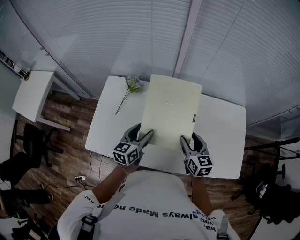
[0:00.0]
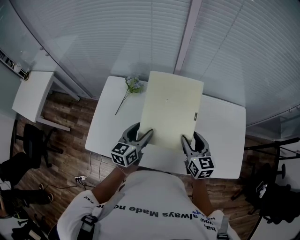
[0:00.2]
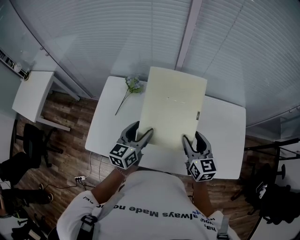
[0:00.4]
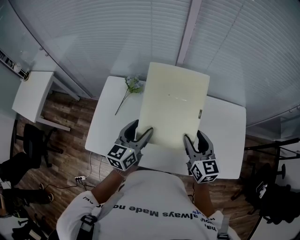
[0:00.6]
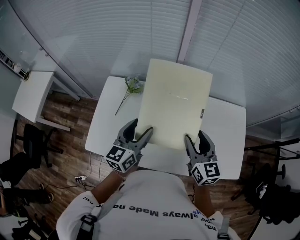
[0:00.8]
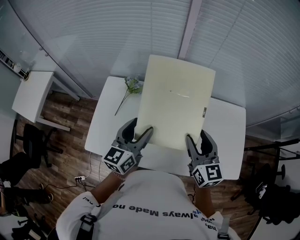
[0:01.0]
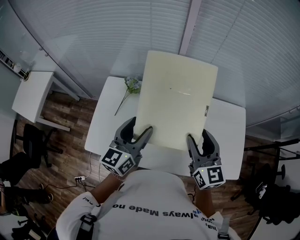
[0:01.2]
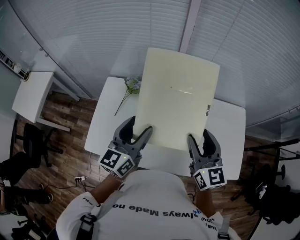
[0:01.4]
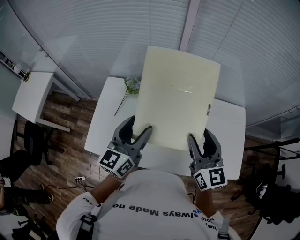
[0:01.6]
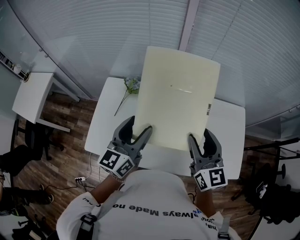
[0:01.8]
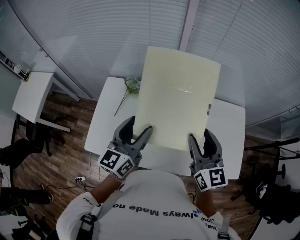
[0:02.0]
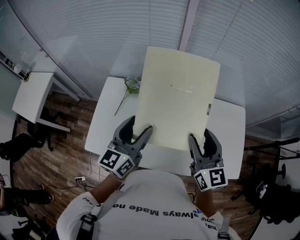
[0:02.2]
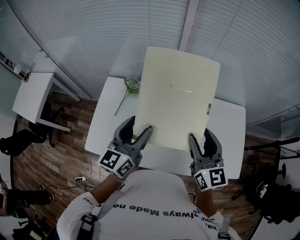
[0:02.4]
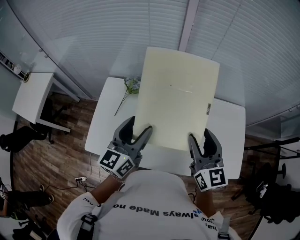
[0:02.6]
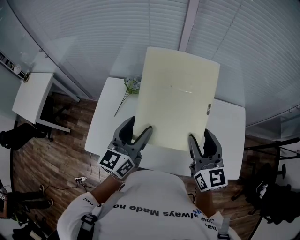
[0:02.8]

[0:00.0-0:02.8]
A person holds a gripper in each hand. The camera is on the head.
0:00.0 to 0:01.4: The two grippers go roughly 15 cm upward.
0:01.4 to 0:02.8: Both grippers stay put.

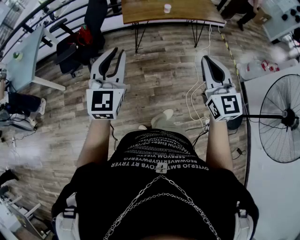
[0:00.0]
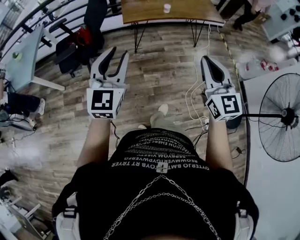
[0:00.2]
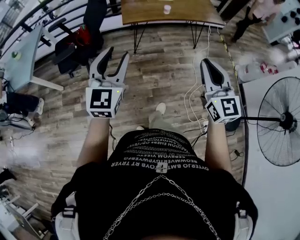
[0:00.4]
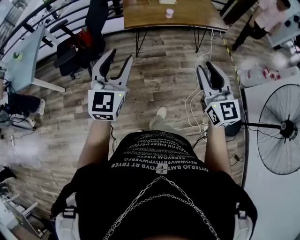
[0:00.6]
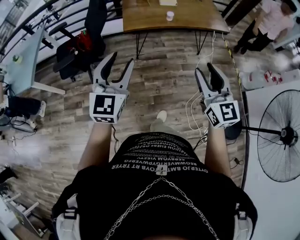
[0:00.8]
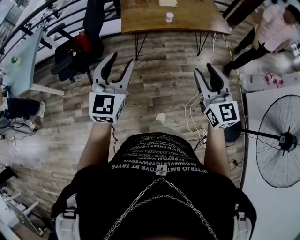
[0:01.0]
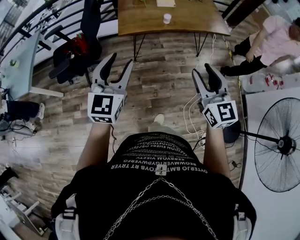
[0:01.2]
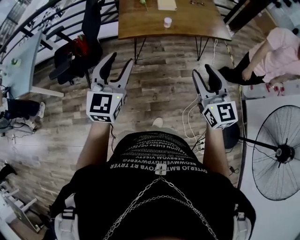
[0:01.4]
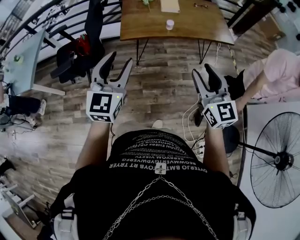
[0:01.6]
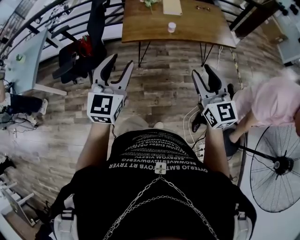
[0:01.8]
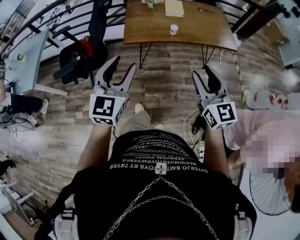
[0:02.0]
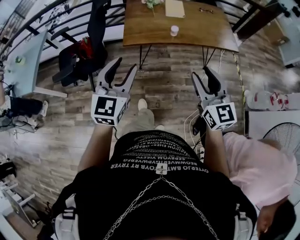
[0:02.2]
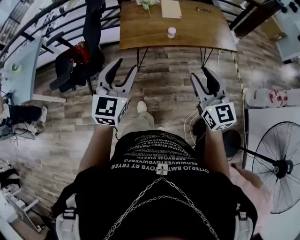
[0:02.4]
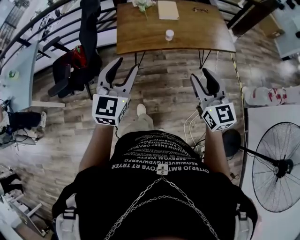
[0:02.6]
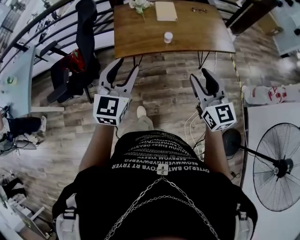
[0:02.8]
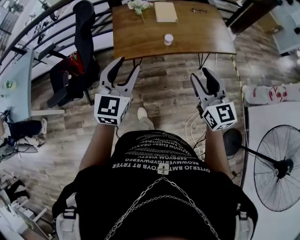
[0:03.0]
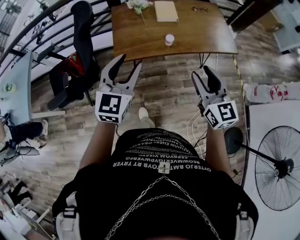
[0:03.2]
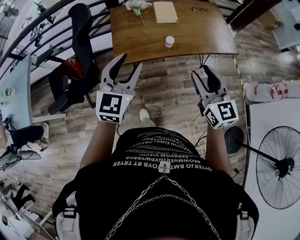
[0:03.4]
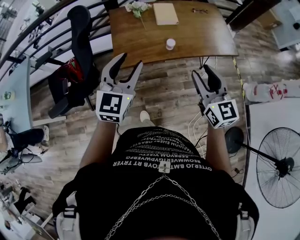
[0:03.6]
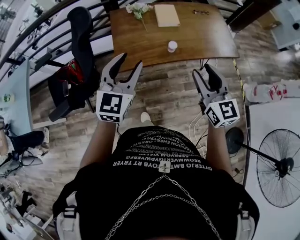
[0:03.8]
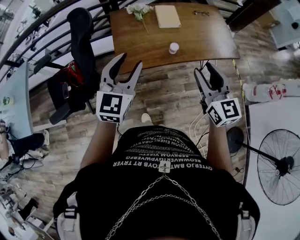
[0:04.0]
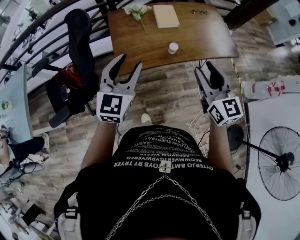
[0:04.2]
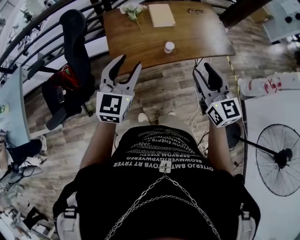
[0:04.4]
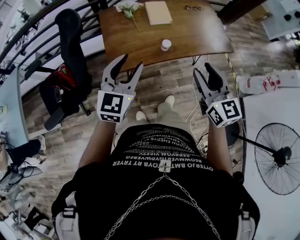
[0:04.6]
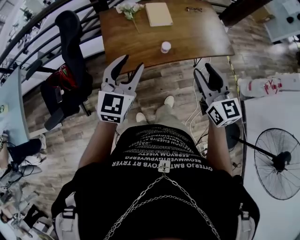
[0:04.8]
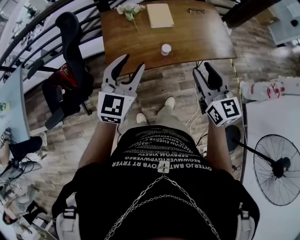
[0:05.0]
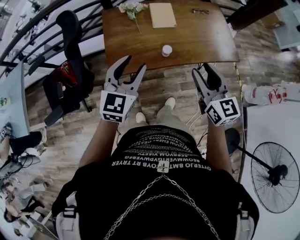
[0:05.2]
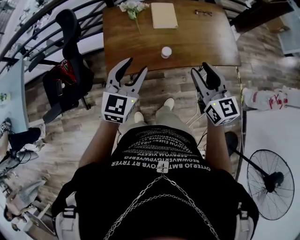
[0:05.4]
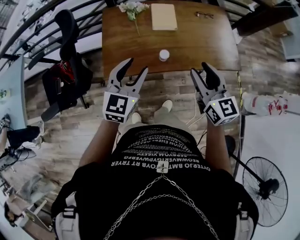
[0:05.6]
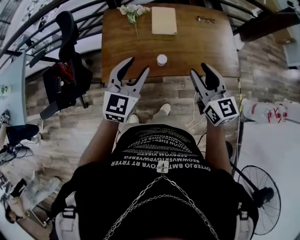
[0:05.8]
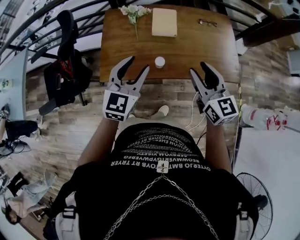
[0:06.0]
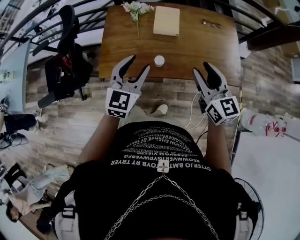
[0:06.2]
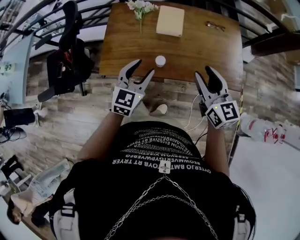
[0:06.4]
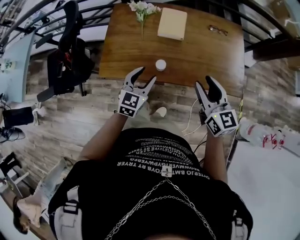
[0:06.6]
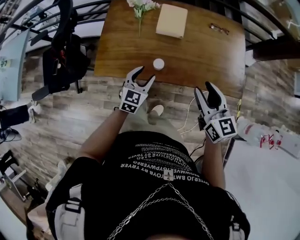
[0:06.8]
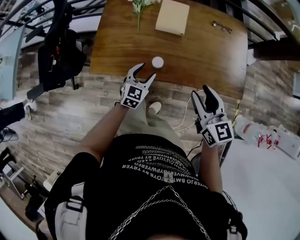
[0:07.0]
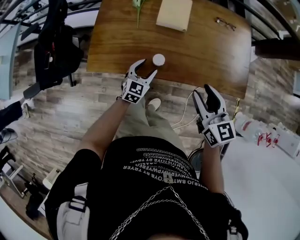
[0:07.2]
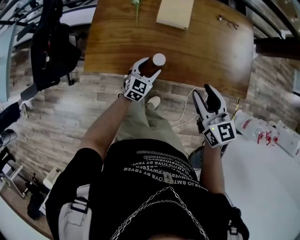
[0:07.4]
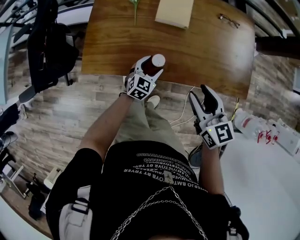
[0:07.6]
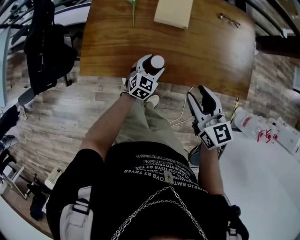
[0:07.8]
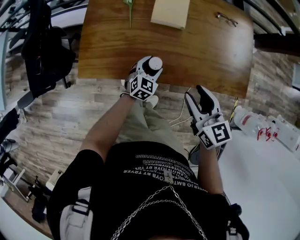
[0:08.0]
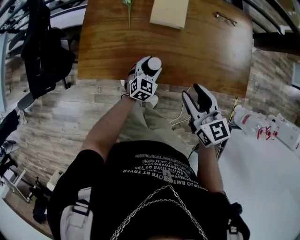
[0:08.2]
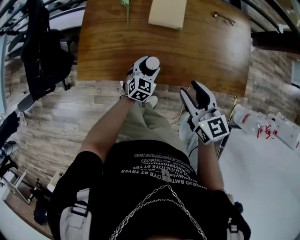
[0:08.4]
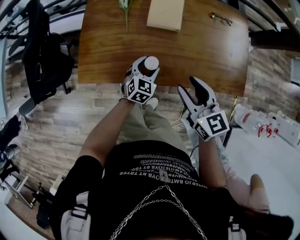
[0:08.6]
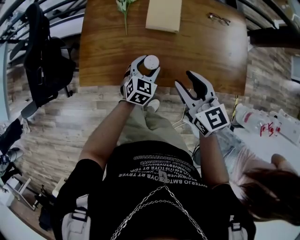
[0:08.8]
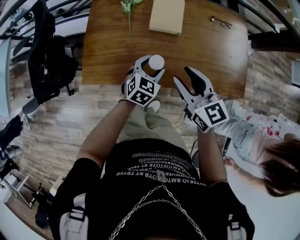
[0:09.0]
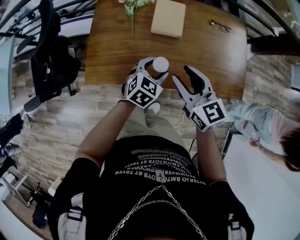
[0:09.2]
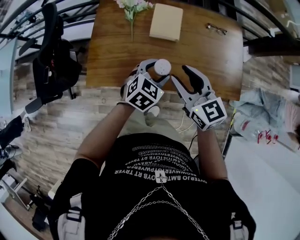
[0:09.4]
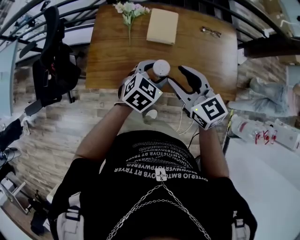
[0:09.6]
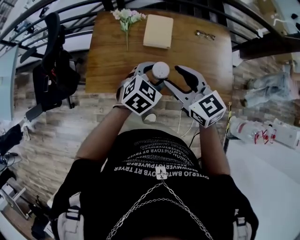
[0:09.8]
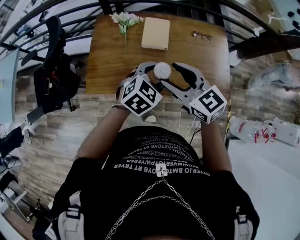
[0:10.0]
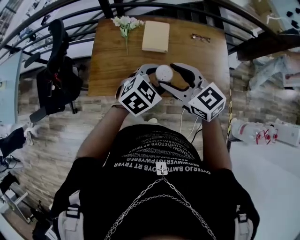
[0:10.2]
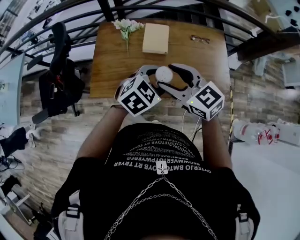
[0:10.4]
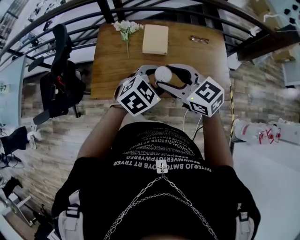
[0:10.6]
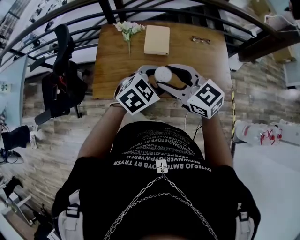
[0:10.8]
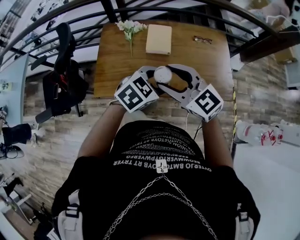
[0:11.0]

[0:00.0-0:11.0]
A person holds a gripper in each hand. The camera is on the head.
0:00.0 to 0:01.6: The grippers both shift forward and to the right by roughly 20 cm. The left gripper opens its fingers; the right gripper opens its fingers.
0:01.6 to 0:03.2: Both grippers travel together forward, about 20 cm.
0:03.2 to 0:04.8: Both grippers move forward, roughly 10 cm.
0:04.8 to 0:06.2: The left gripper shifts approximately 20 cm to the right, forward and downward; the right gripper goes about 20 cm forward and to the right.
0:06.2 to 0:07.8: The right gripper heads downward, covering approximately 15 cm. The left gripper heads downward, covering about 35 cm.
0:07.8 to 0:09.4: The right gripper travels upward, forward and to the left by approximately 10 cm. Meanwhile the left gripper heads upward, covering some 20 cm.
0:09.4 to 0:11.0: The right gripper moves upward, some 10 cm, and swivels roughly 20 degrees; the left gripper travels upward and backward by roughly 15 cm.

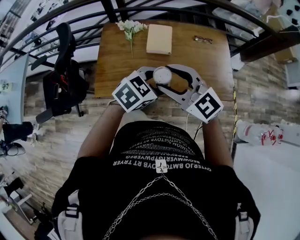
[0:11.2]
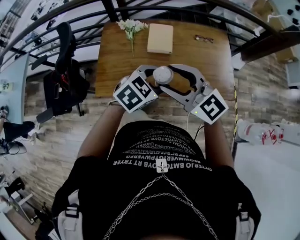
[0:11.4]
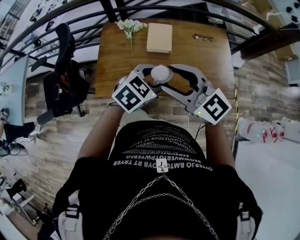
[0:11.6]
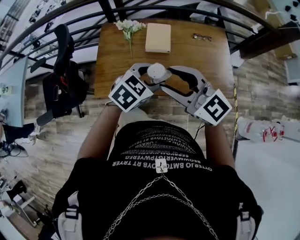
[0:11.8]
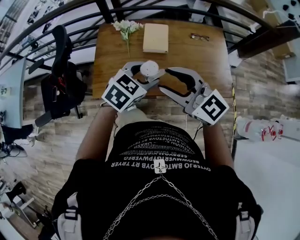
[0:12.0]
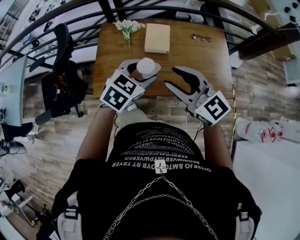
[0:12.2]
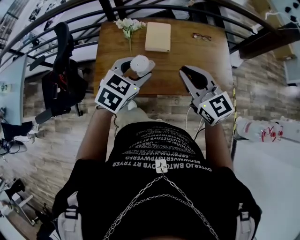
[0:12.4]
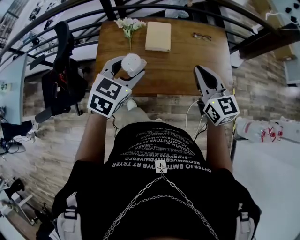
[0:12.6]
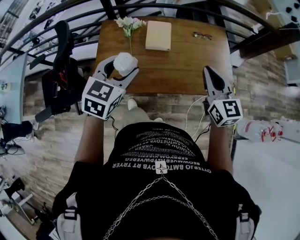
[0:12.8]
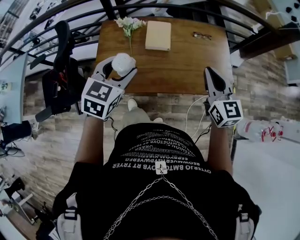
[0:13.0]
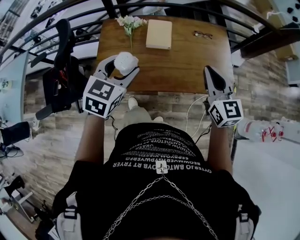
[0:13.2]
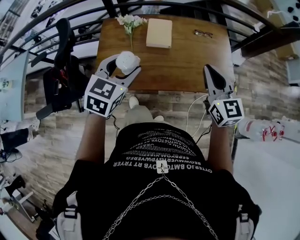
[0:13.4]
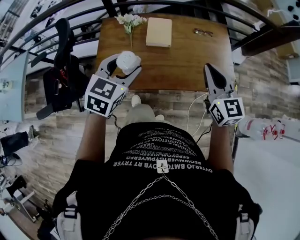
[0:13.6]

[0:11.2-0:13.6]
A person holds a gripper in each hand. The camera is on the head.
0:11.2 to 0:12.4: The right gripper travels to the right by roughly 5 cm, rotates about 20 degrees, and closes; the left gripper moves to the left, about 5 cm.
0:12.4 to 0:13.6: The right gripper shifts approximately 10 cm to the right.

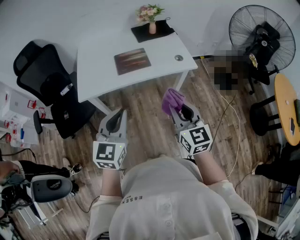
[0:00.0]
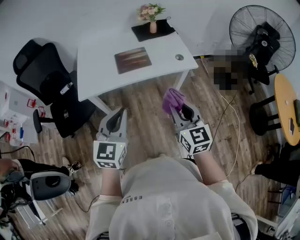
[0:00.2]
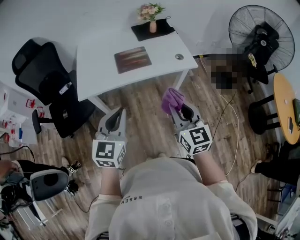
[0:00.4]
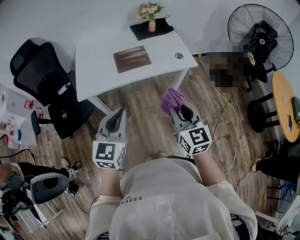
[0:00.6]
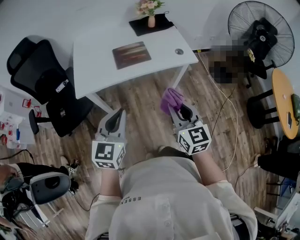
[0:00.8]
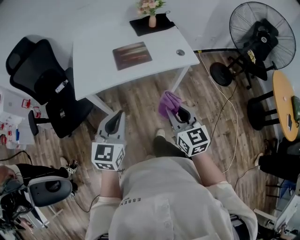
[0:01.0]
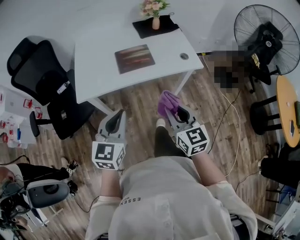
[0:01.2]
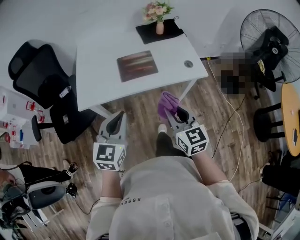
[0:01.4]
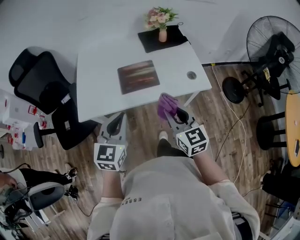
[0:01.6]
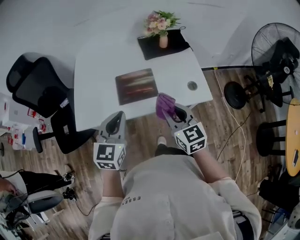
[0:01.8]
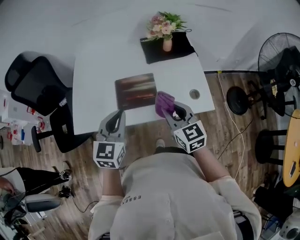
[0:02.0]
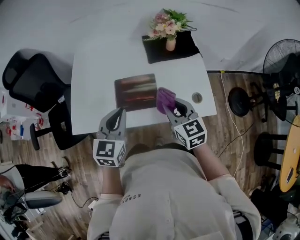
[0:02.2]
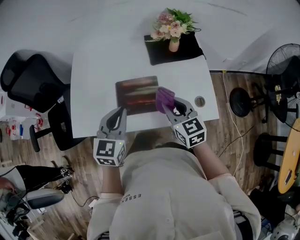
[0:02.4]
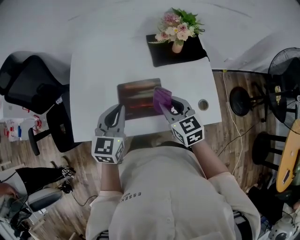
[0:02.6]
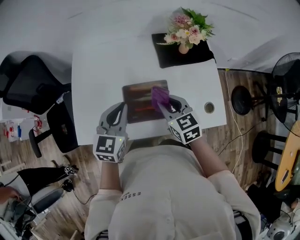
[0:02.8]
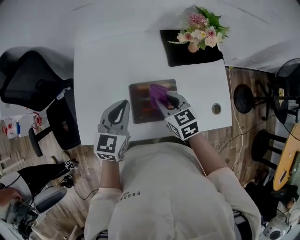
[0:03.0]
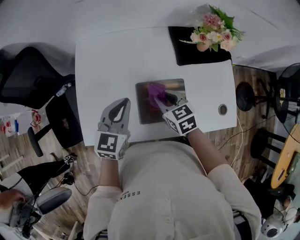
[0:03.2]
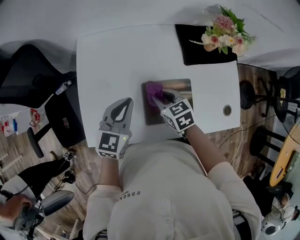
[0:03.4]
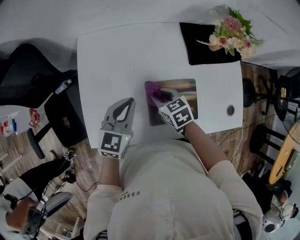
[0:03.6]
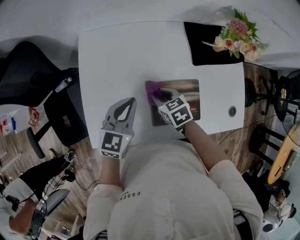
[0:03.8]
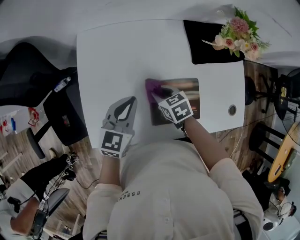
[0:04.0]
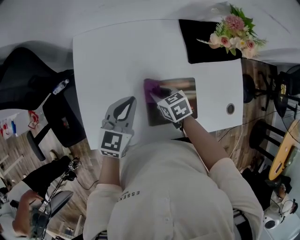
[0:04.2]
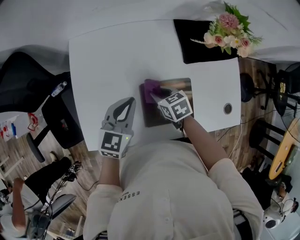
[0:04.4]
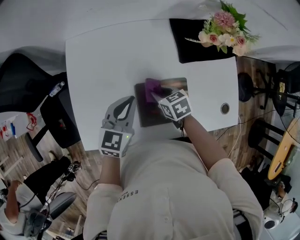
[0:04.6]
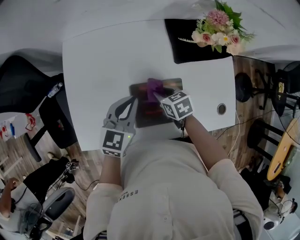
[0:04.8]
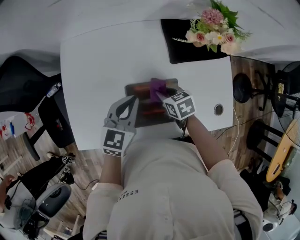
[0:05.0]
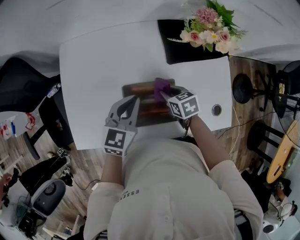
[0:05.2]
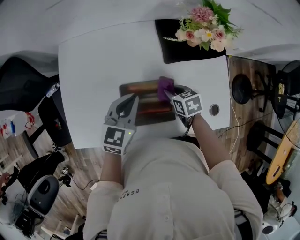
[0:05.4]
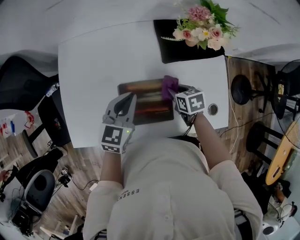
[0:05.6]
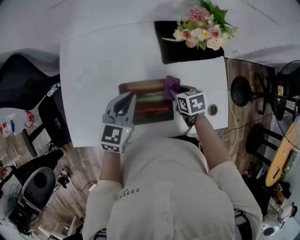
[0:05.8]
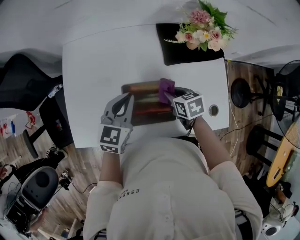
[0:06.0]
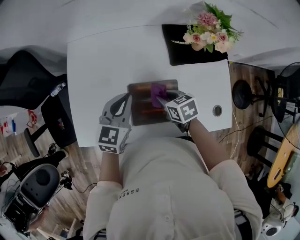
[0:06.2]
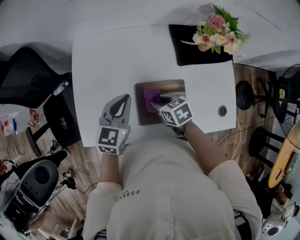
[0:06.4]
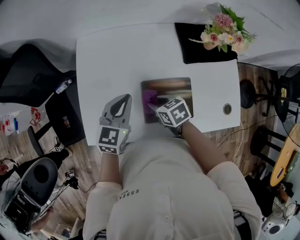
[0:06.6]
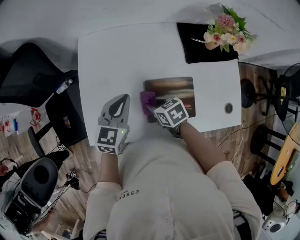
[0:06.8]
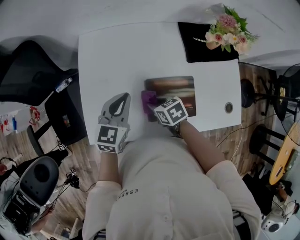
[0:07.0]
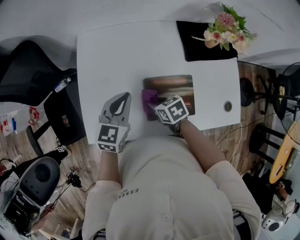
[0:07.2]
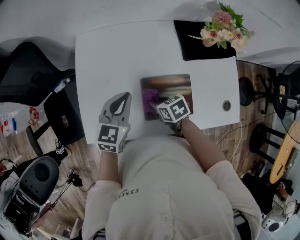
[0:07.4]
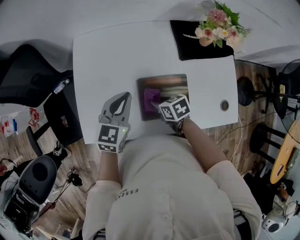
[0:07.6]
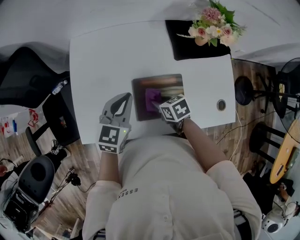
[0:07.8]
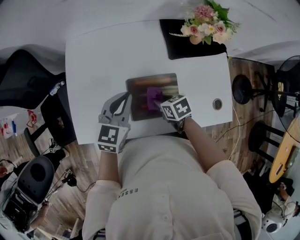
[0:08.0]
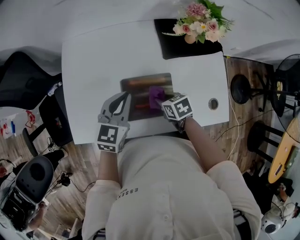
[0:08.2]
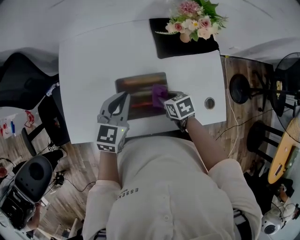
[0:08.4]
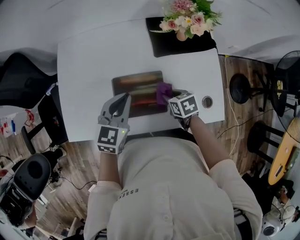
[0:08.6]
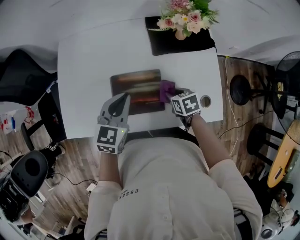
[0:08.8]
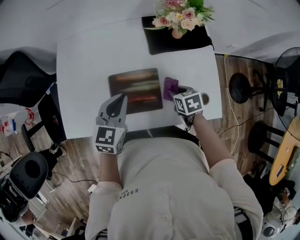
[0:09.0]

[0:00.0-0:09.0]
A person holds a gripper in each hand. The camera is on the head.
0:00.0 to 0:01.6: The grippers both shift forward by about 20 cm.
0:01.6 to 0:03.0: The two grippers go some 30 cm forward. The right gripper rotates some 30 degrees.
0:03.0 to 0:04.4: The right gripper moves downward, to the left and forward, roughly 15 cm, and turns by approximately 20 degrees. The left gripper goes roughly 10 cm downward and forward.
0:04.4 to 0:06.0: The right gripper is displaced to the right by about 15 cm. The left gripper heads to the right, covering roughly 10 cm.
0:06.0 to 0:07.6: The left gripper heads to the left, covering approximately 10 cm. Meanwhile the right gripper moves to the left, some 15 cm.
0:07.6 to 0:09.0: The left gripper travels to the right and backward by approximately 15 cm. The right gripper moves to the right, some 25 cm.
